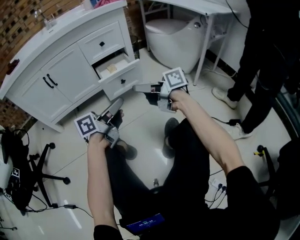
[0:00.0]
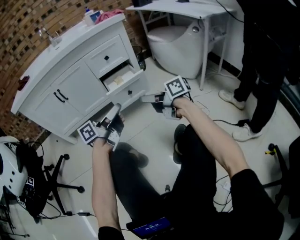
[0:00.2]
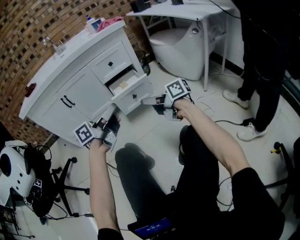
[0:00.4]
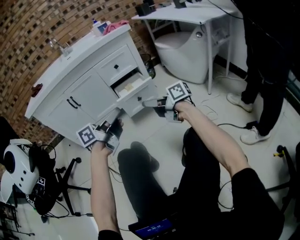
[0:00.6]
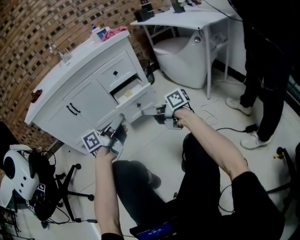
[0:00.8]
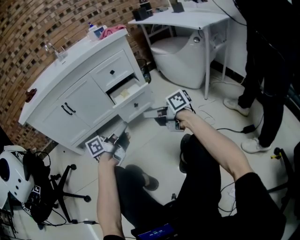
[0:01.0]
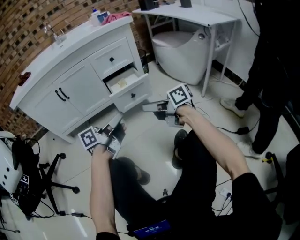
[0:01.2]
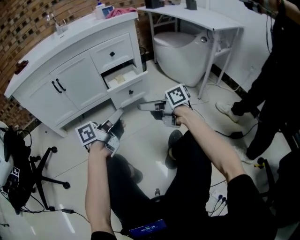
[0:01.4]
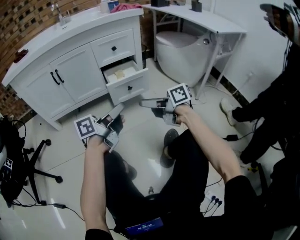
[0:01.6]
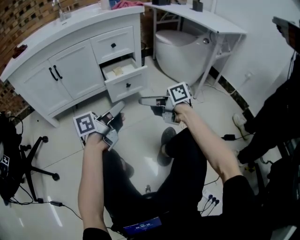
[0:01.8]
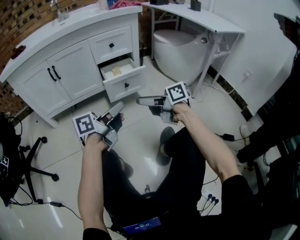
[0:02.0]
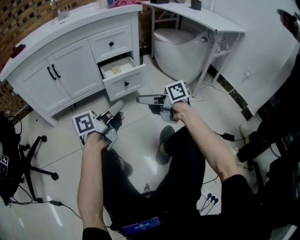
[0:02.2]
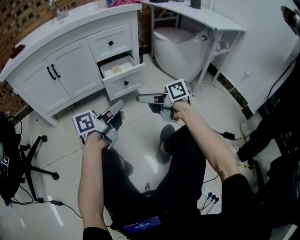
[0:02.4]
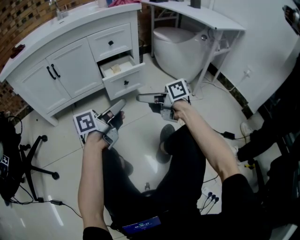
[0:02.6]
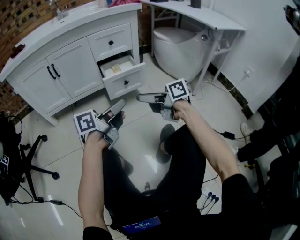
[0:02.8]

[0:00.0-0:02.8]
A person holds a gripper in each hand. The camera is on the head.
0:00.0 to 0:01.4: The left gripper goes upward and returns, about 5 cm each way.
0:01.4 to 0:02.8: The grippers move only a little.

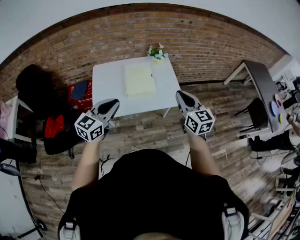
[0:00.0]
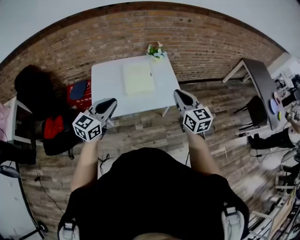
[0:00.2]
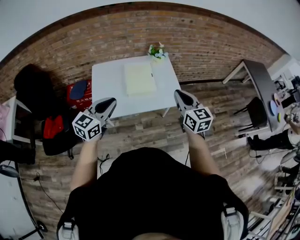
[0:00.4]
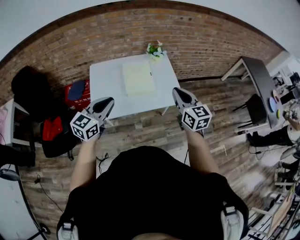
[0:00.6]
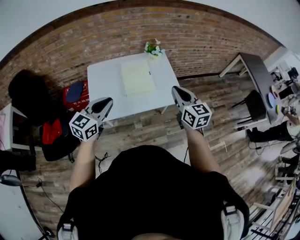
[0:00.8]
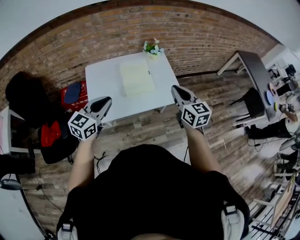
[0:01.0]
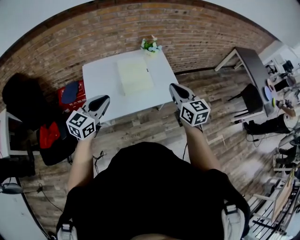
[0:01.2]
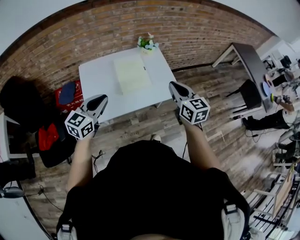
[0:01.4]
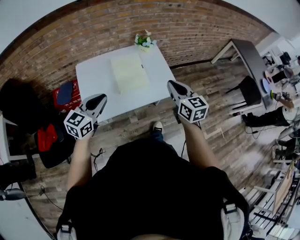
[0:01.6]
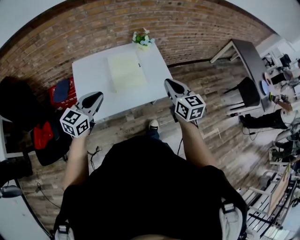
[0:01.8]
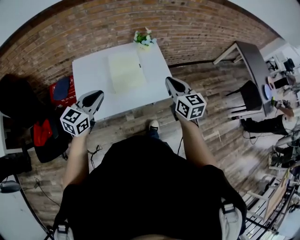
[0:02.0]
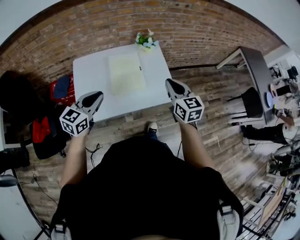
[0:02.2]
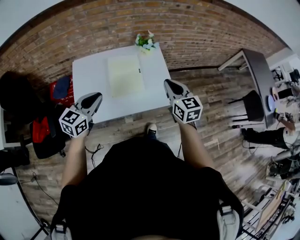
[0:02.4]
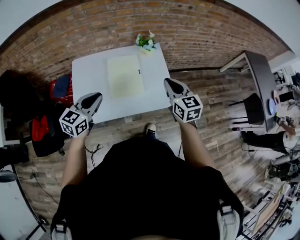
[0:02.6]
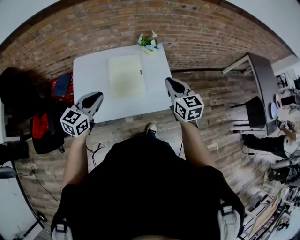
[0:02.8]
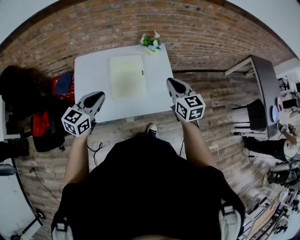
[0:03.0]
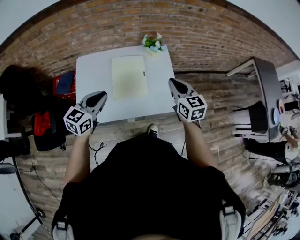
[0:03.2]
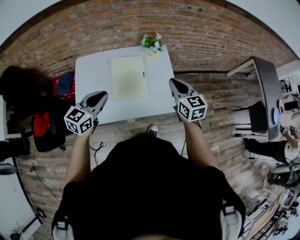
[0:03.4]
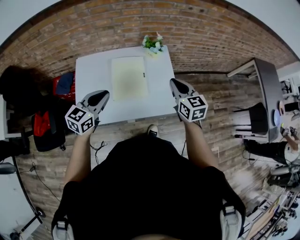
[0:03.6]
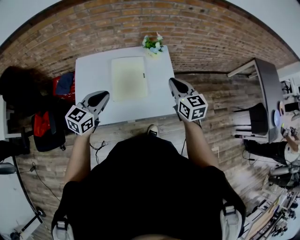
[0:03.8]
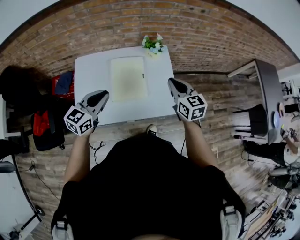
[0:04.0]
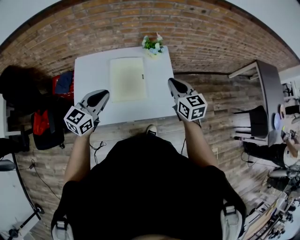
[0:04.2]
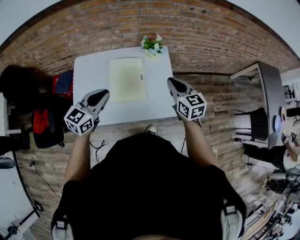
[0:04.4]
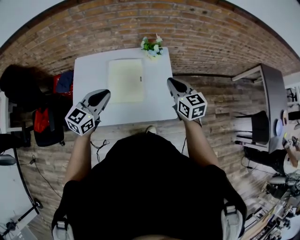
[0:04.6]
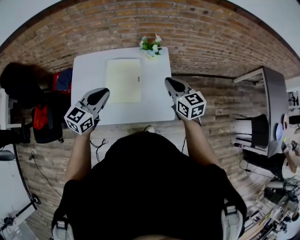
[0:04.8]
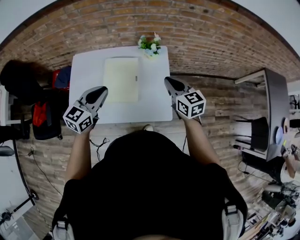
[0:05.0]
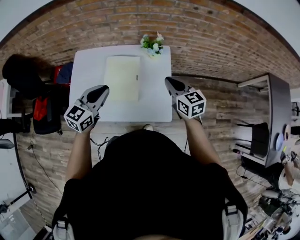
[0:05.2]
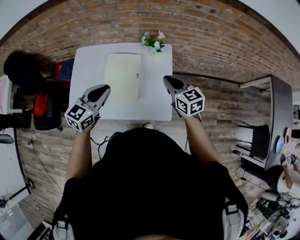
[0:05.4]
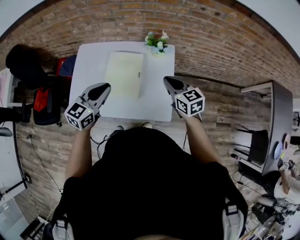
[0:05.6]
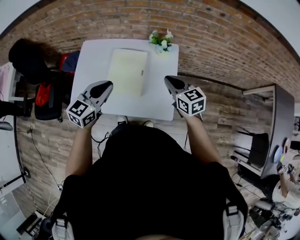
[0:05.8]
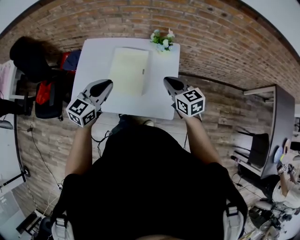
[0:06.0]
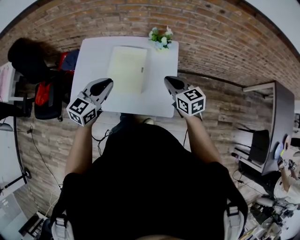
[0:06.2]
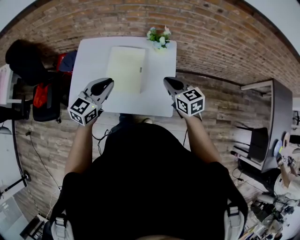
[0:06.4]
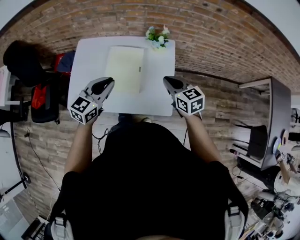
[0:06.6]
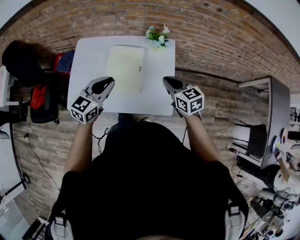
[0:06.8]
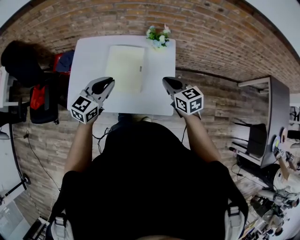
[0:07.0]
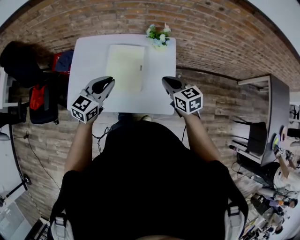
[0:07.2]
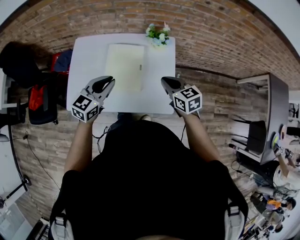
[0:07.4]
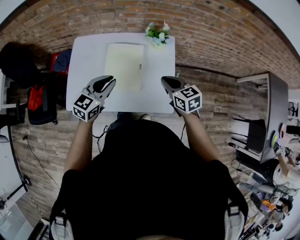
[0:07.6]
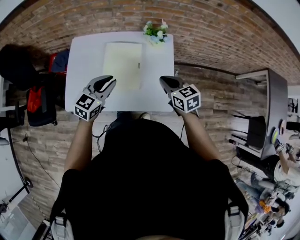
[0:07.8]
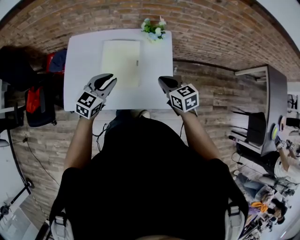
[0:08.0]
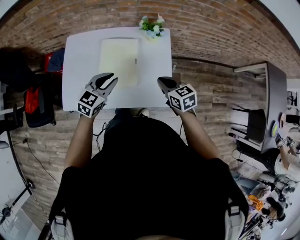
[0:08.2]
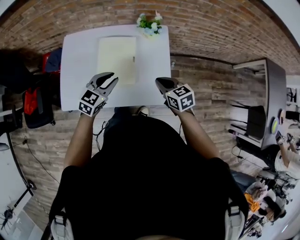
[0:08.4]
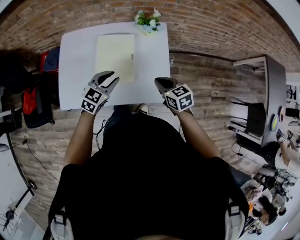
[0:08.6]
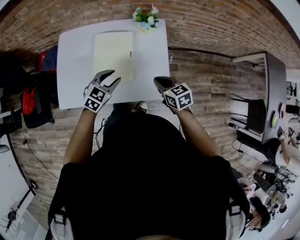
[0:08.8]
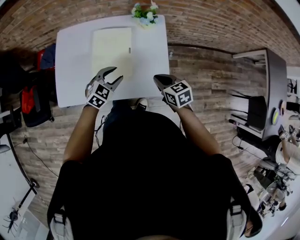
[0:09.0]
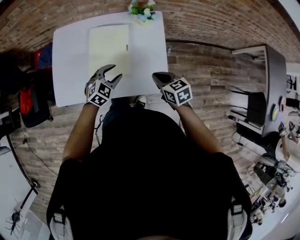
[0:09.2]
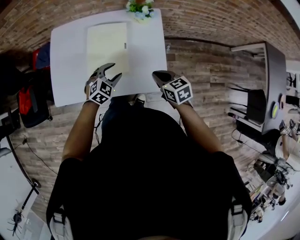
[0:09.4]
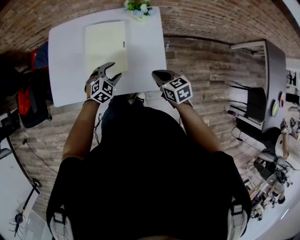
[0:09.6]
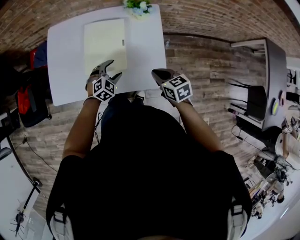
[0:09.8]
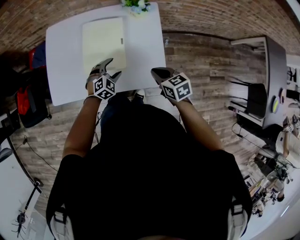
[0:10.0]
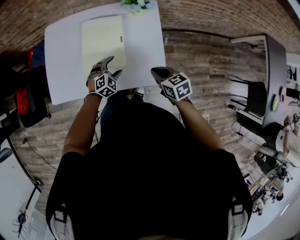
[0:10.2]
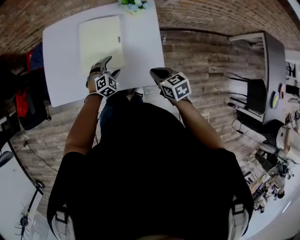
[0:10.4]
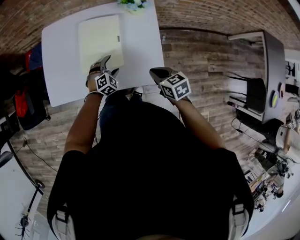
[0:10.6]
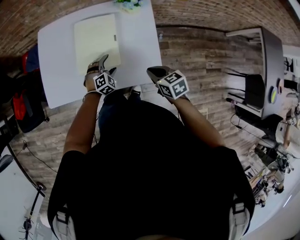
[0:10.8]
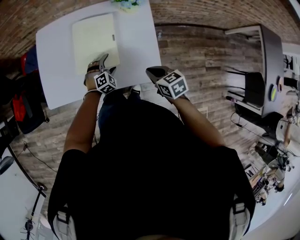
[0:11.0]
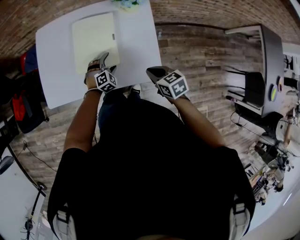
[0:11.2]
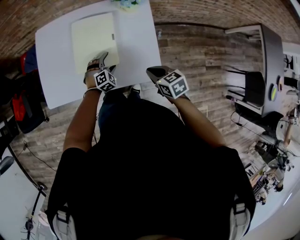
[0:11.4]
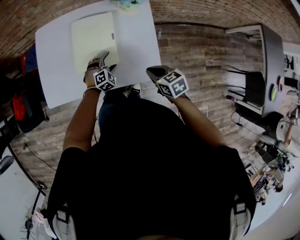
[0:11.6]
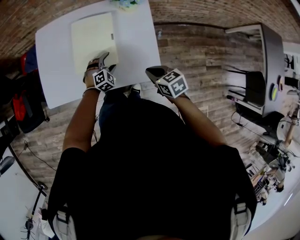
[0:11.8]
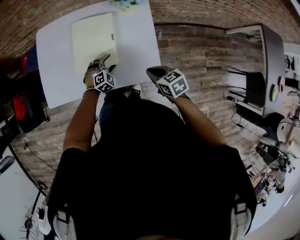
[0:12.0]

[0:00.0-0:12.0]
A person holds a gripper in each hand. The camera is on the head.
0:00.0 to 0:01.6: The right gripper heads forward and to the left, covering approximately 10 cm. The left gripper moves forward, to the left and downward, about 10 cm.
0:01.6 to 0:03.0: The left gripper heads forward and to the right, covering roughly 15 cm, while the right gripper moves forward, some 15 cm.
0:03.0 to 0:04.4: Both grippers move forward, approximately 5 cm.
0:04.4 to 0:06.0: The left gripper moves to the right, about 5 cm. The right gripper heads downward, covering approximately 5 cm, and swivels some 20 degrees.
0:06.0 to 0:07.6: The left gripper is displaced downward by roughly 5 cm.
0:07.6 to 0:09.0: The right gripper goes roughly 10 cm downward and backward. Meanwhile the left gripper shifts roughly 15 cm downward and to the right, and rotates approximately 30 degrees.
0:09.0 to 0:10.4: The left gripper goes some 15 cm downward, rotates roughly 20 degrees, and opens up.
0:10.4 to 0:12.0: The grippers make only small movements.

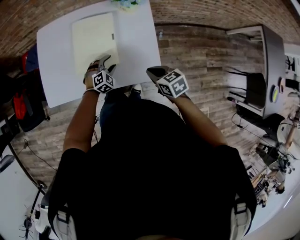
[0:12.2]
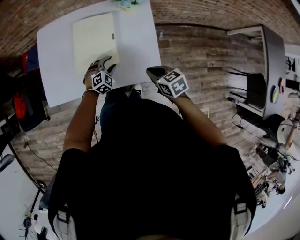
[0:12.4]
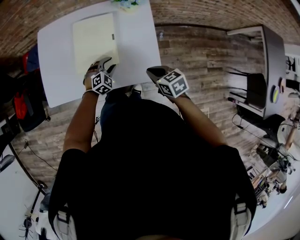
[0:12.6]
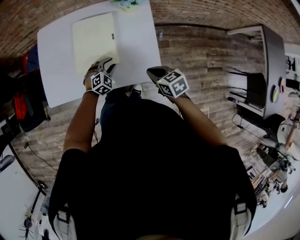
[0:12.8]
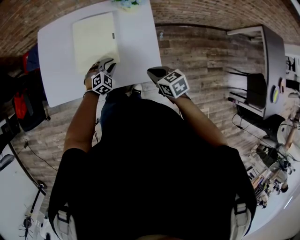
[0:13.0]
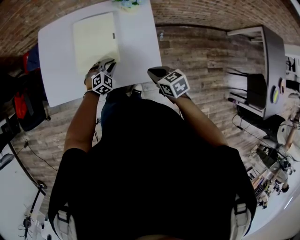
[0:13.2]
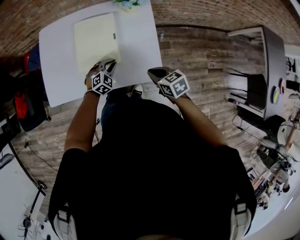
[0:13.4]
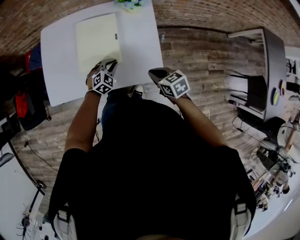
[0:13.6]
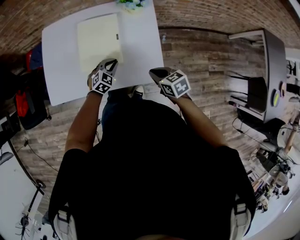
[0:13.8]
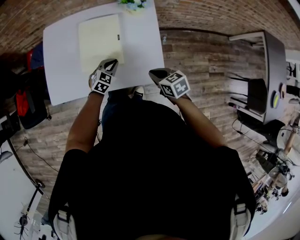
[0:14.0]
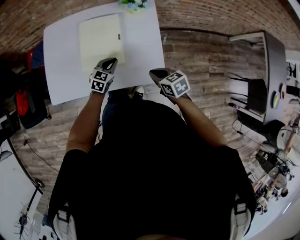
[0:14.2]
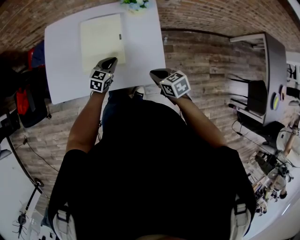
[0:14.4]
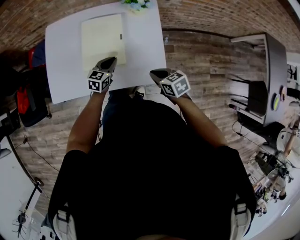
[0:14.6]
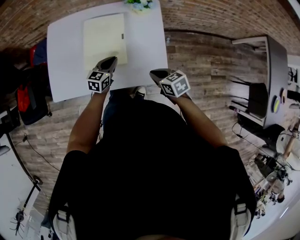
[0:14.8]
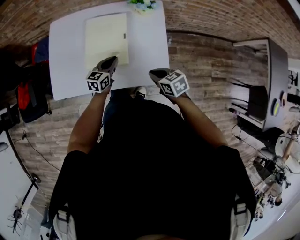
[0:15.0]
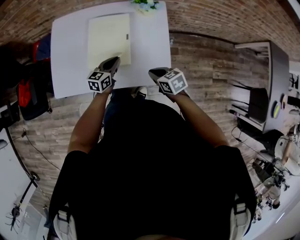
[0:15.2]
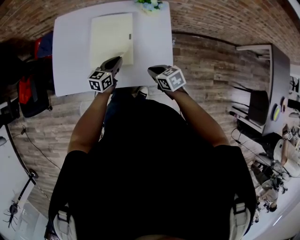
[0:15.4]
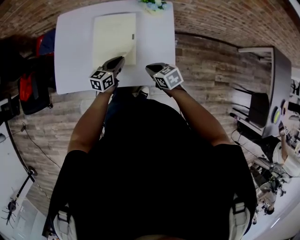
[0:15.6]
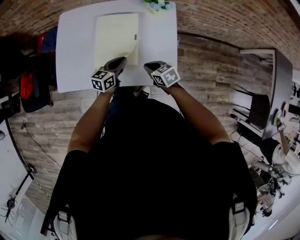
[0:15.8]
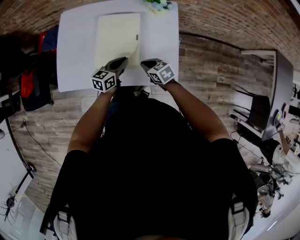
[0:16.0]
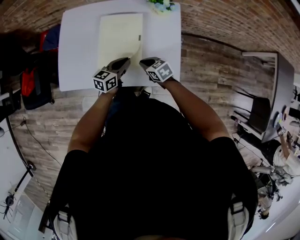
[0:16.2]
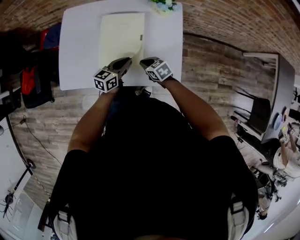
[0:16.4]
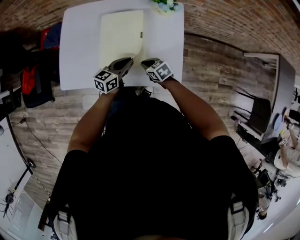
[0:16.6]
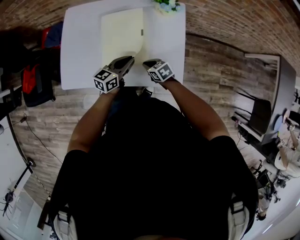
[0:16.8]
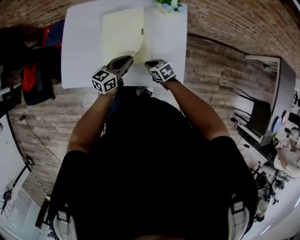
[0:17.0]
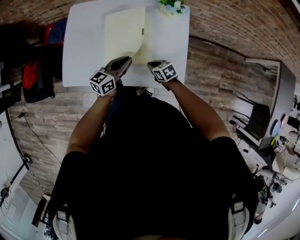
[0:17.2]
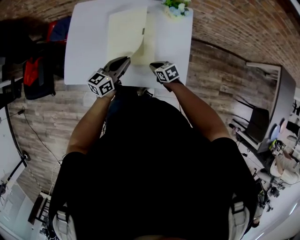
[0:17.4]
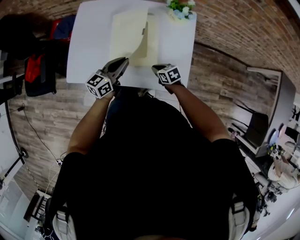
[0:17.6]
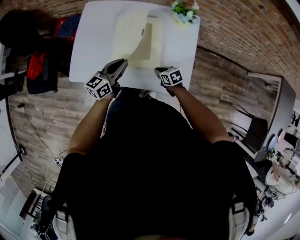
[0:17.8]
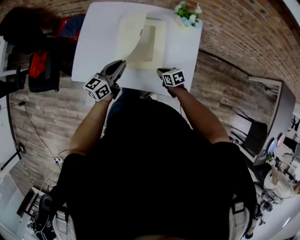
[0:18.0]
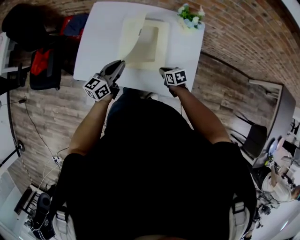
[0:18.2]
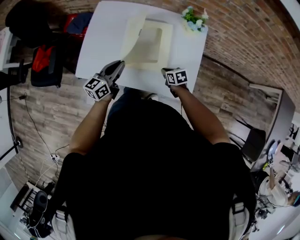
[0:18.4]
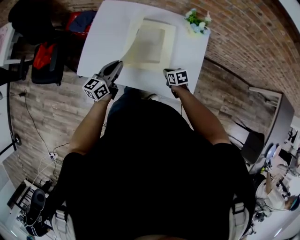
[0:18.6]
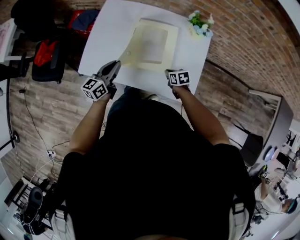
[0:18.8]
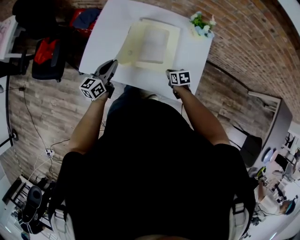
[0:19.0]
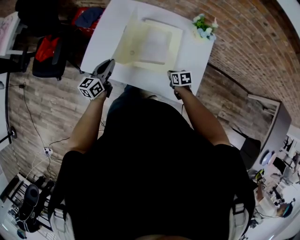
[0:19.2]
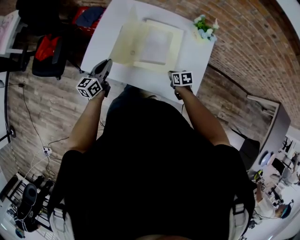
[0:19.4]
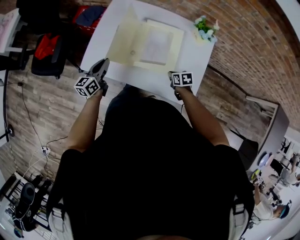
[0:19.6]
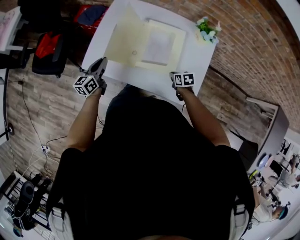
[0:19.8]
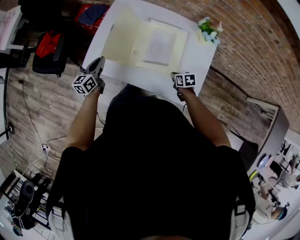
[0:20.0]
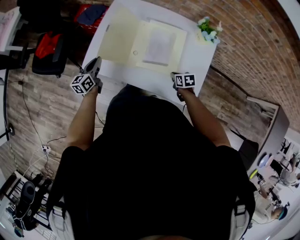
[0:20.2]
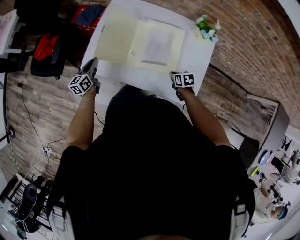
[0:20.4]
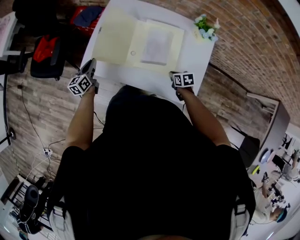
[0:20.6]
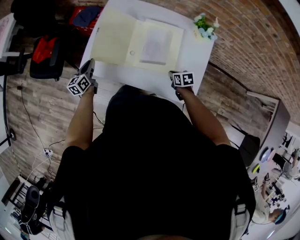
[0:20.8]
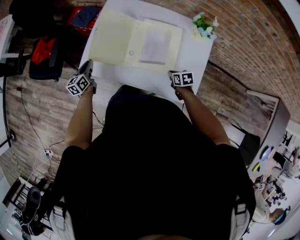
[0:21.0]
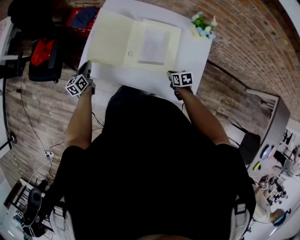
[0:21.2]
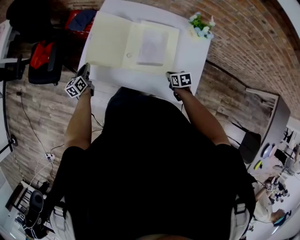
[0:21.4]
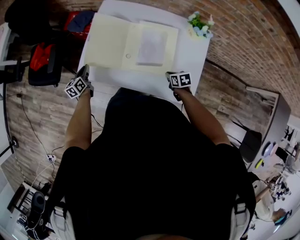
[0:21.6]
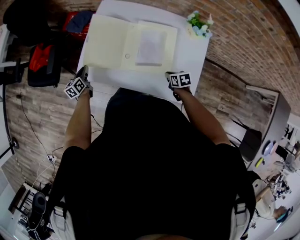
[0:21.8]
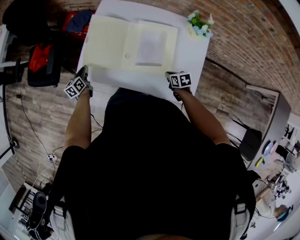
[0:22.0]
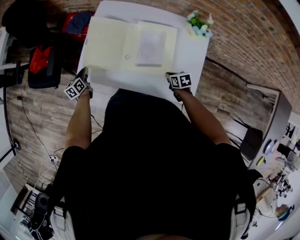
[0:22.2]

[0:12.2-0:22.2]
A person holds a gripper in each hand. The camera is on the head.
0:12.2 to 0:13.6: The left gripper closes.
0:13.6 to 0:15.0: The left gripper moves upward, some 5 cm, and rotates around the line of its fingers by roughly 50 degrees, counterclockwise from behind.
0:15.0 to 0:16.4: The right gripper shifts some 15 cm to the left, downward and forward.
0:16.4 to 0:18.0: The left gripper is displaced to the left and upward by some 15 cm.
0:18.0 to 0:19.4: The left gripper heads to the left, covering about 15 cm.
0:19.4 to 0:20.8: The left gripper is displaced to the left, downward and forward by some 15 cm.
0:20.8 to 0:22.2: The left gripper heads downward, covering approximately 5 cm.
